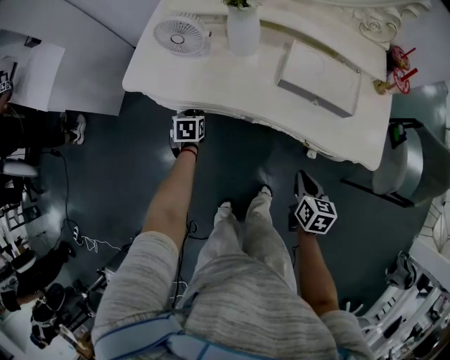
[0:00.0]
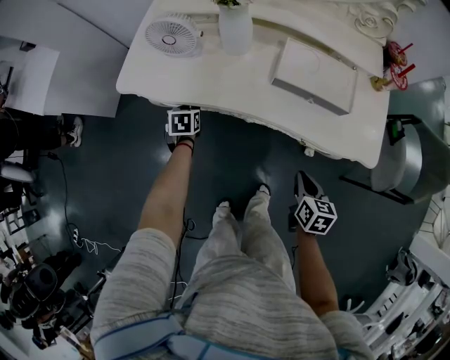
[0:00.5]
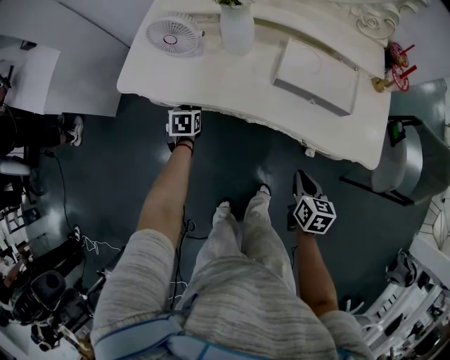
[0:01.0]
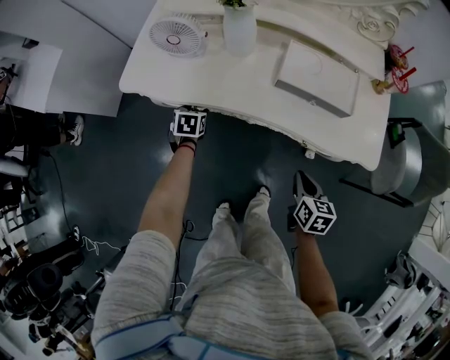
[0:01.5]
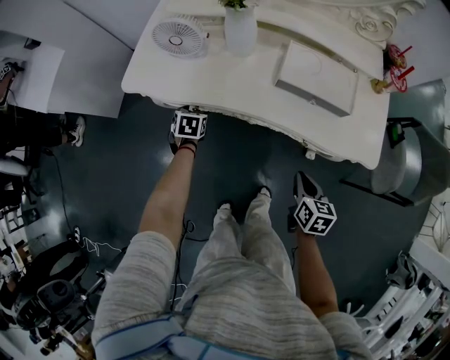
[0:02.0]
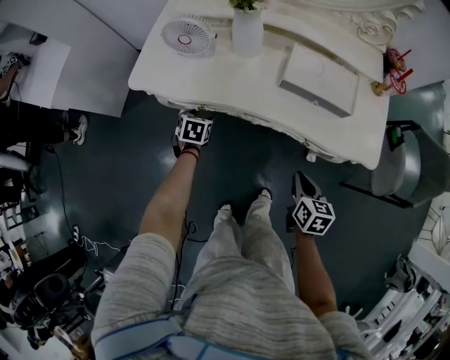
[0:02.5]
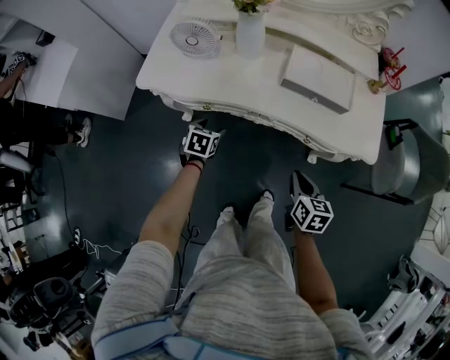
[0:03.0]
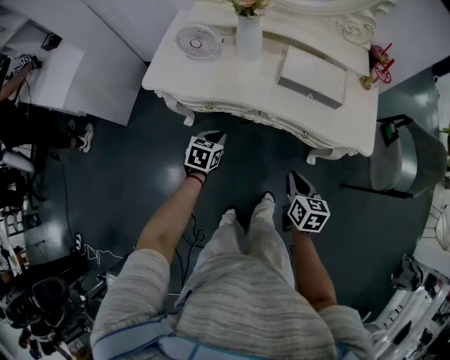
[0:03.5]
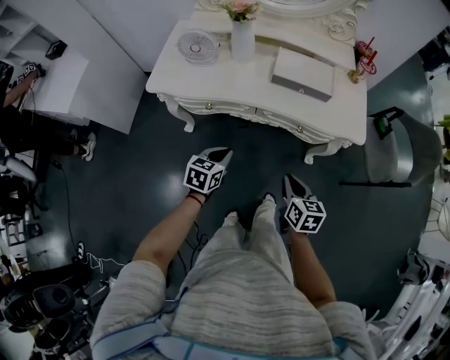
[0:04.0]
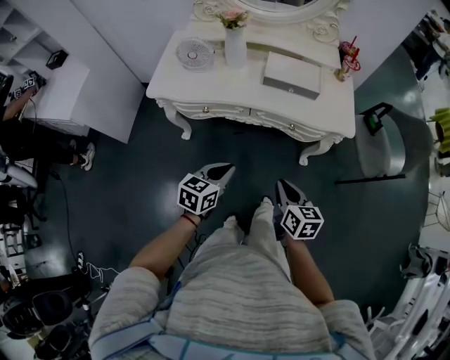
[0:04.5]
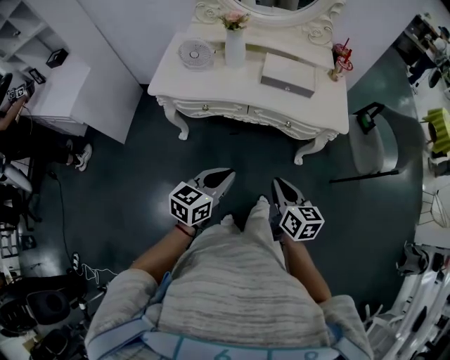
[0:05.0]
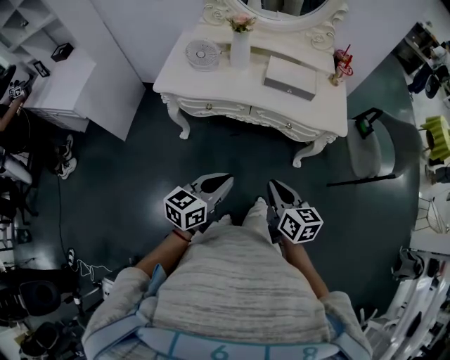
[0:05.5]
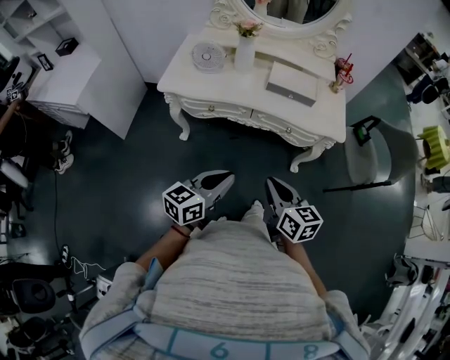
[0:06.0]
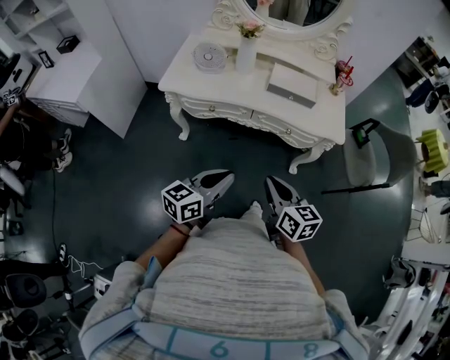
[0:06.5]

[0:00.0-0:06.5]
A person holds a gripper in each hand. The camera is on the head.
0:00.0 to 0:02.0: The left gripper opens its fingers.
0:02.0 to 0:04.5: The right gripper goes roughly 20 cm backward and upward; the left gripper is displaced backward, upward and to the right by about 40 cm, points its fingers about 30 degrees further upward, and closes.
0:04.5 to 0:06.5: The right gripper is displaced upward, backward and to the left by about 15 cm, while the left gripper is displaced upward and backward by about 15 cm, and swivels roughly 20 degrees.

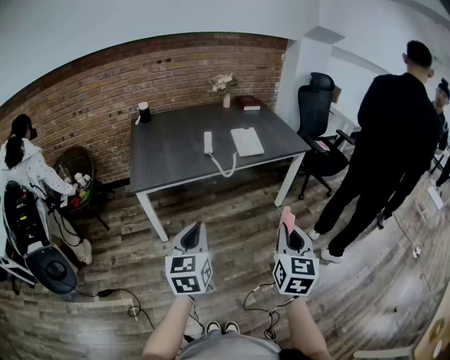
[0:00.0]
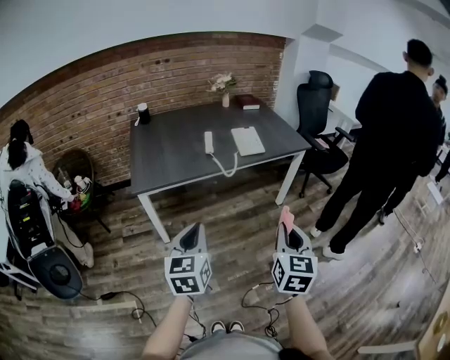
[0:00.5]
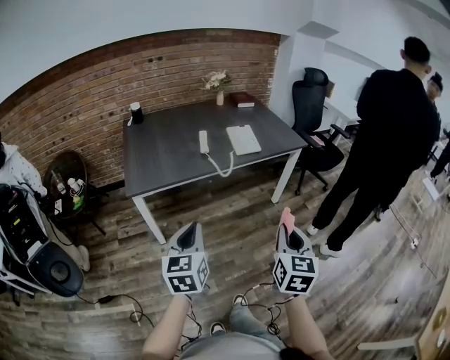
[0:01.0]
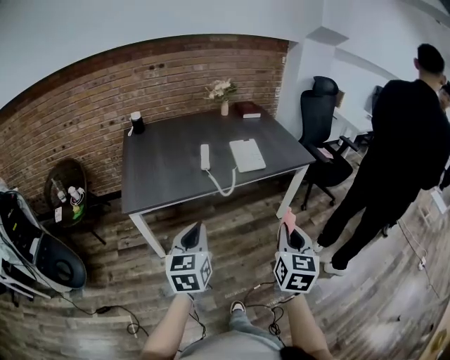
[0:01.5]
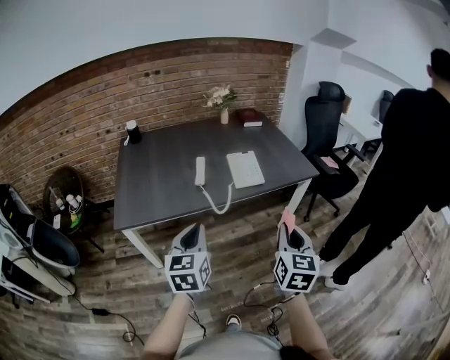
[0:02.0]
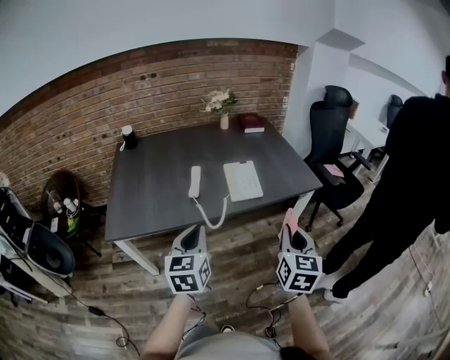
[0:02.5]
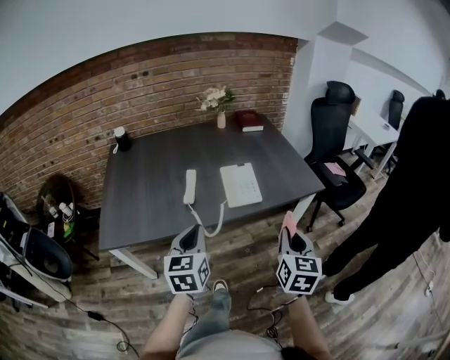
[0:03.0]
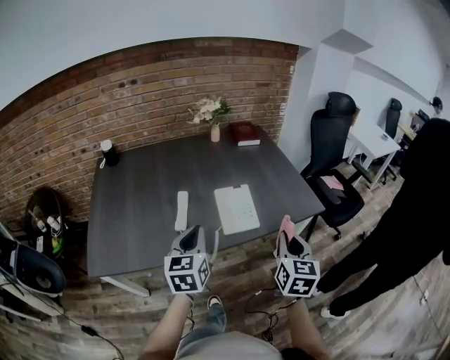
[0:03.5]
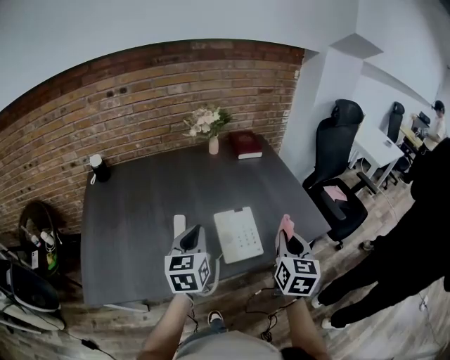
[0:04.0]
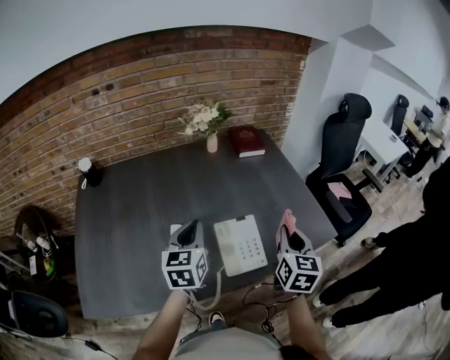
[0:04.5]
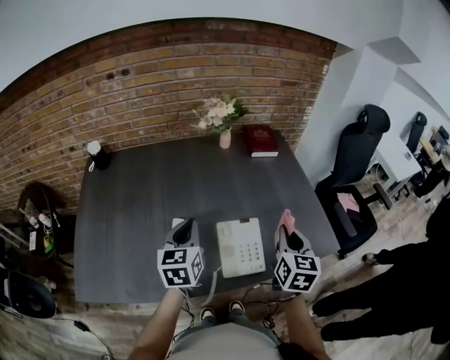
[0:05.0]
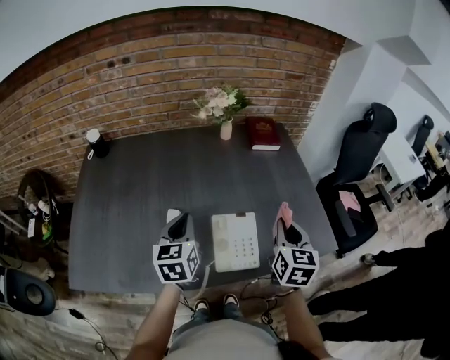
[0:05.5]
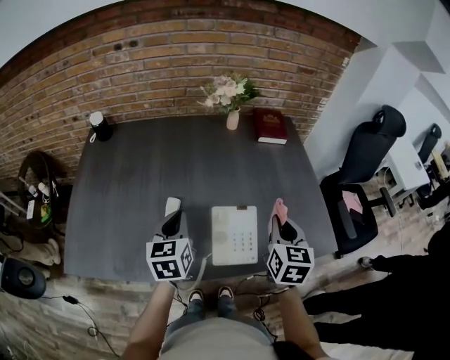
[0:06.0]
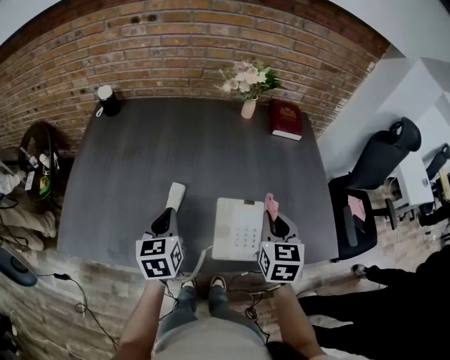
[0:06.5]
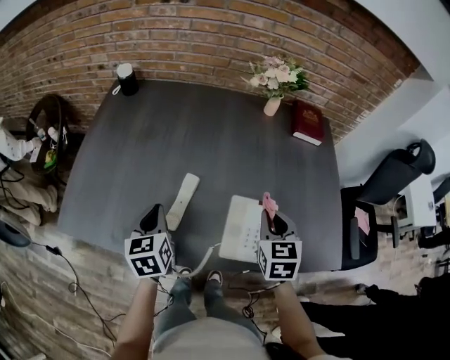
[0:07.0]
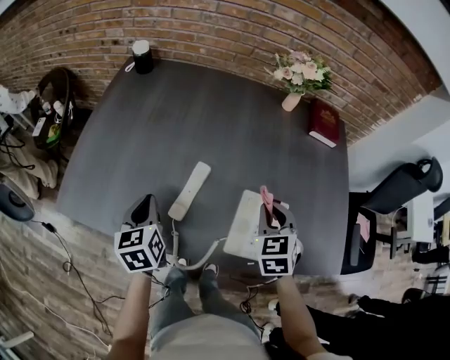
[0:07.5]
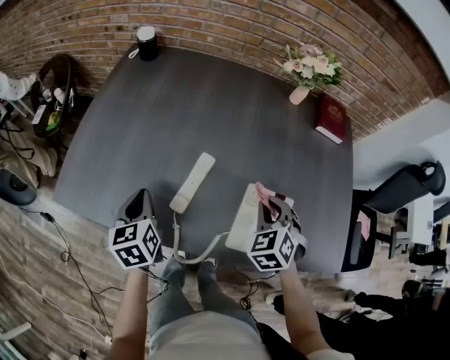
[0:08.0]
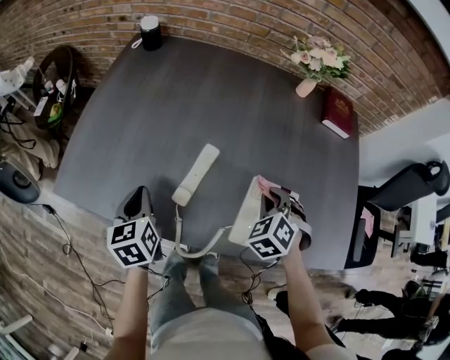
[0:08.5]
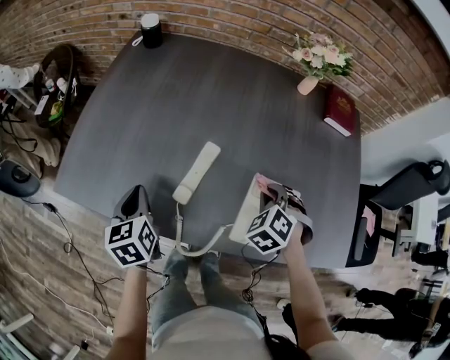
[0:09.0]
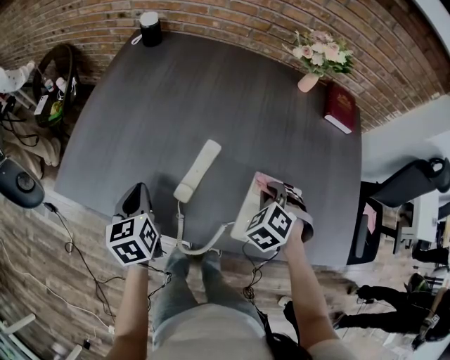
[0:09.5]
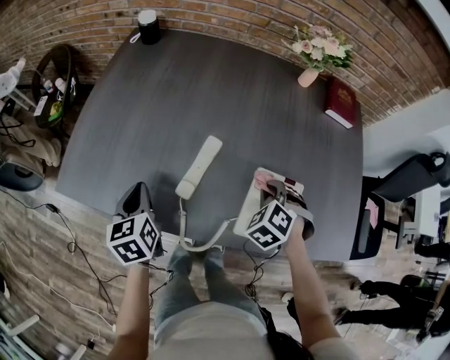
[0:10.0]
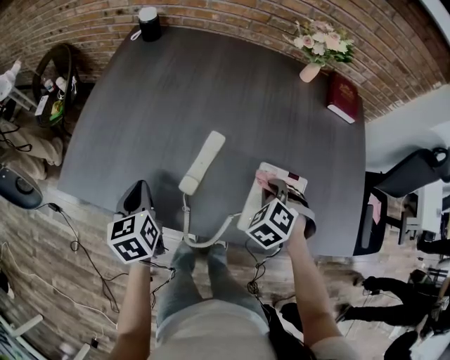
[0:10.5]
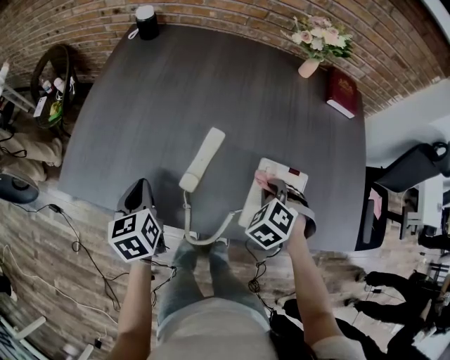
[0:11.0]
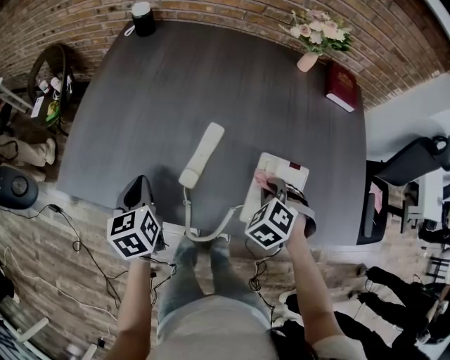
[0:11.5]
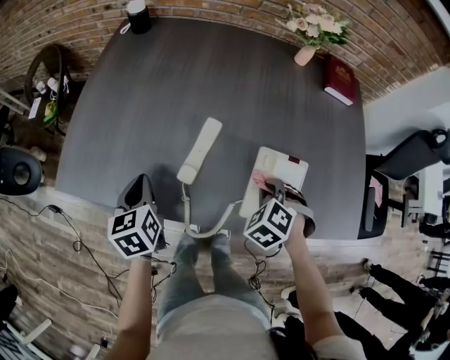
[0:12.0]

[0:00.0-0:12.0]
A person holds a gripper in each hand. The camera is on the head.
0:00.0 to 0:02.0: Both grippers move forward, roughly 25 cm.
0:02.0 to 0:04.0: The grippers both shift forward by roughly 40 cm.
0:04.0 to 0:06.0: The right gripper goes about 15 cm forward. The left gripper goes approximately 10 cm forward and downward.
0:06.0 to 0:08.0: The right gripper heads to the left, downward and forward, covering approximately 20 cm, and rotates around the line of its fingers by some 50 degrees, counterclockwise from behind. Meanwhile the left gripper heads to the left and downward, covering approximately 20 cm, and rotates roughly 30 degrees.
0:08.0 to 0:10.0: The right gripper moves downward, about 5 cm, and turns by some 20 degrees.
0:10.0 to 0:12.0: The right gripper goes some 5 cm backward.

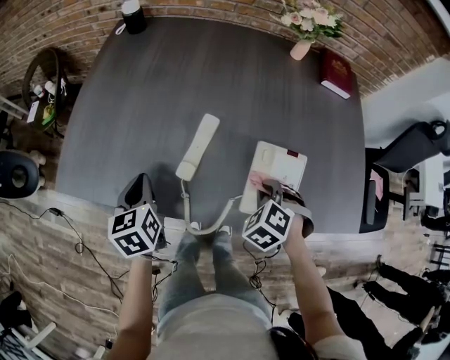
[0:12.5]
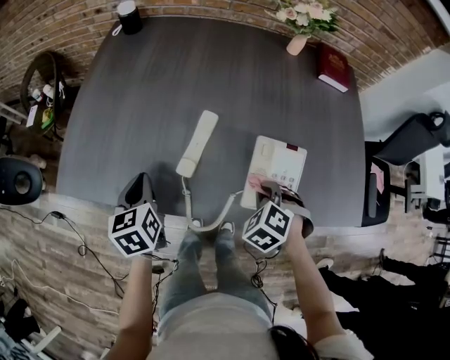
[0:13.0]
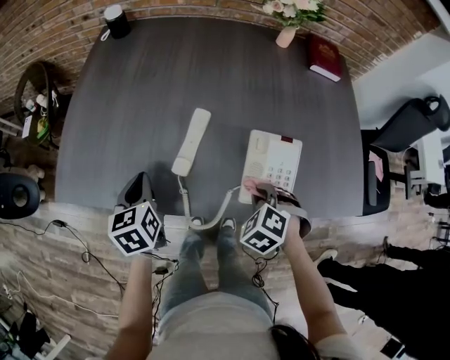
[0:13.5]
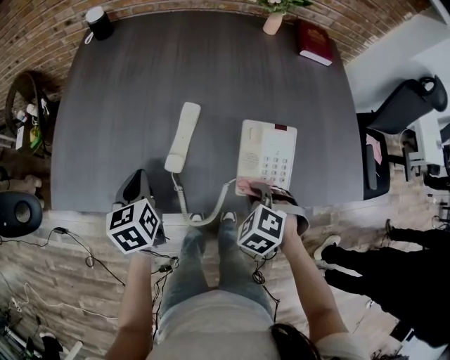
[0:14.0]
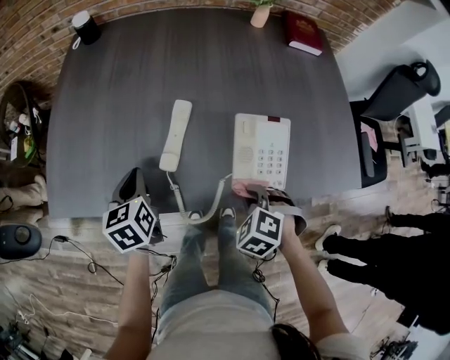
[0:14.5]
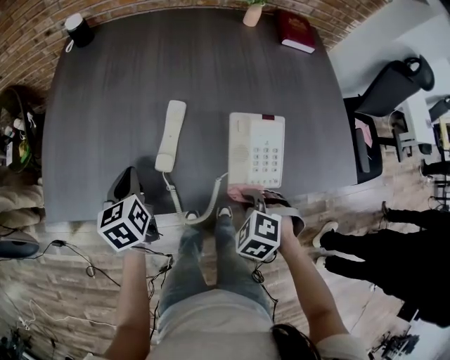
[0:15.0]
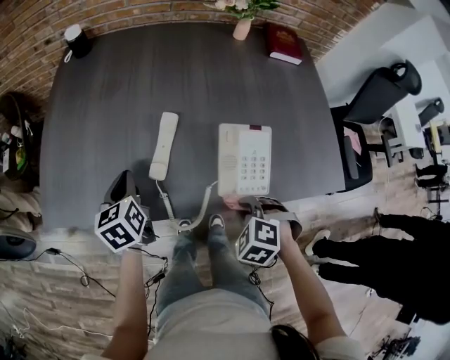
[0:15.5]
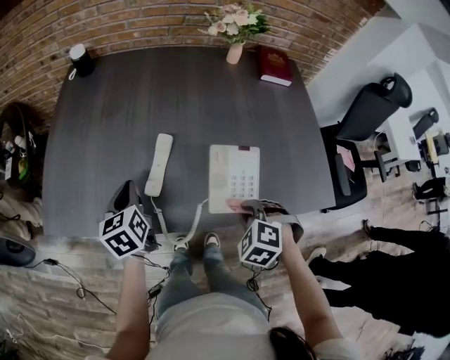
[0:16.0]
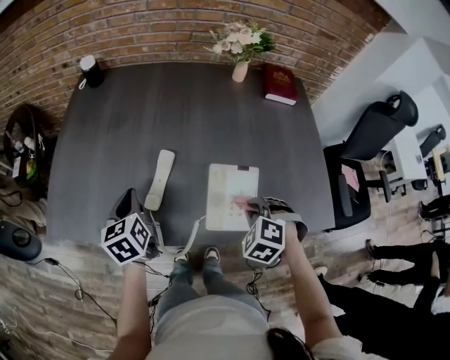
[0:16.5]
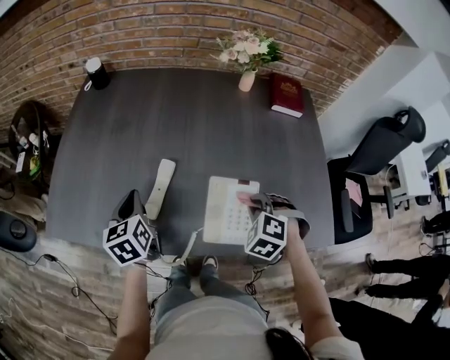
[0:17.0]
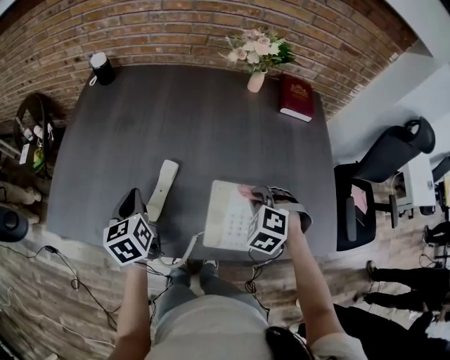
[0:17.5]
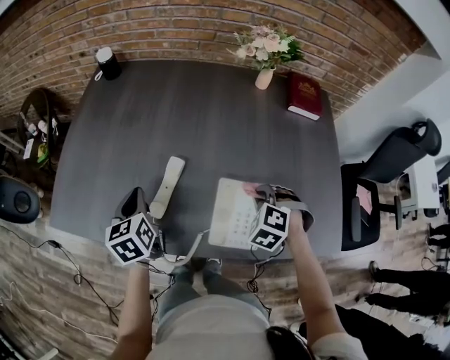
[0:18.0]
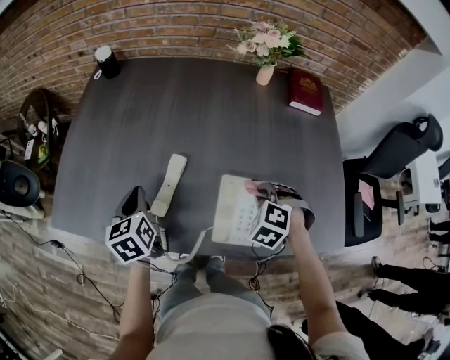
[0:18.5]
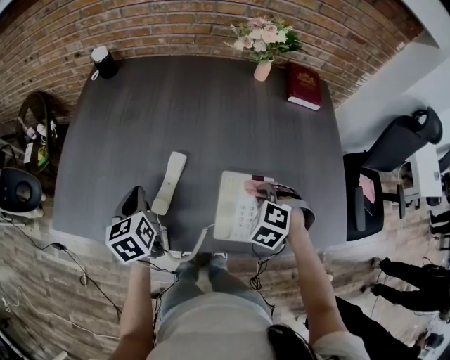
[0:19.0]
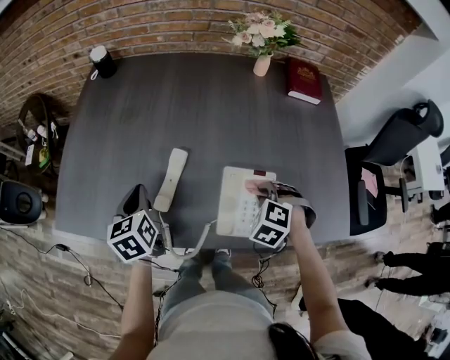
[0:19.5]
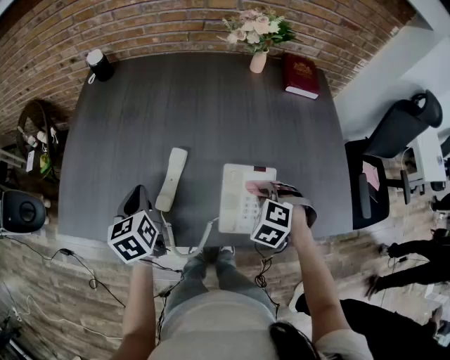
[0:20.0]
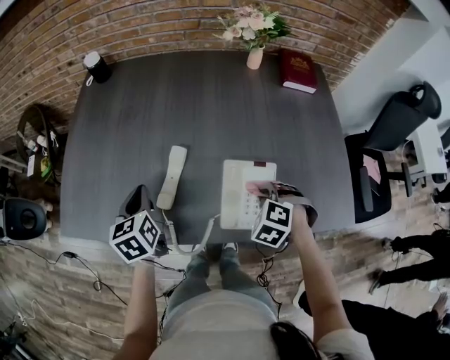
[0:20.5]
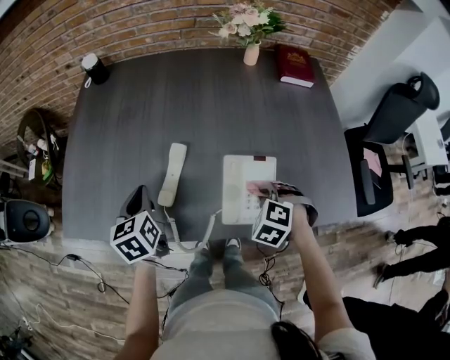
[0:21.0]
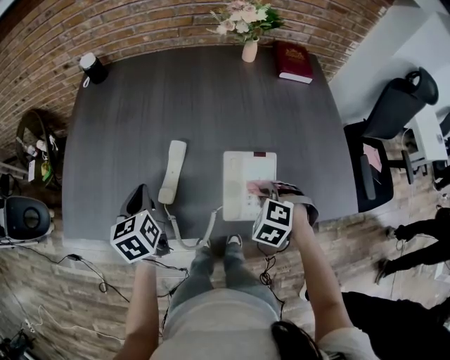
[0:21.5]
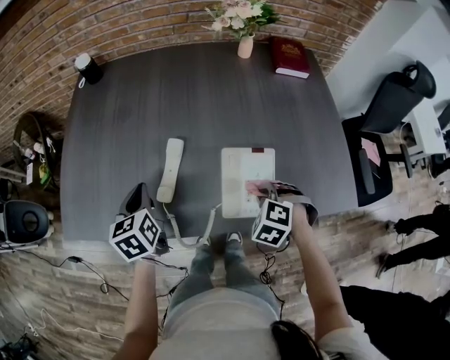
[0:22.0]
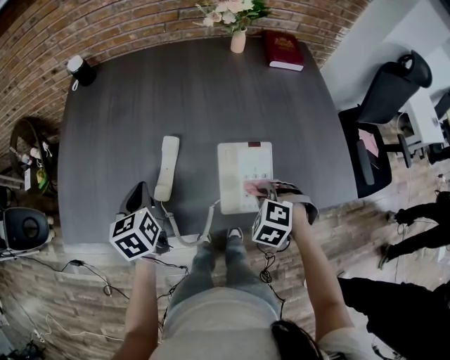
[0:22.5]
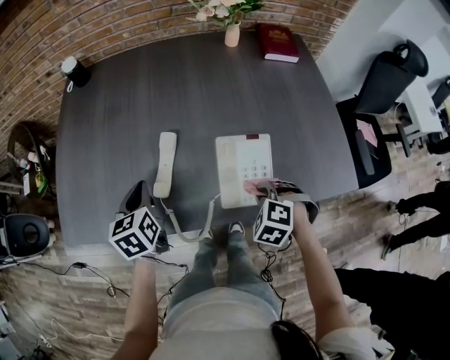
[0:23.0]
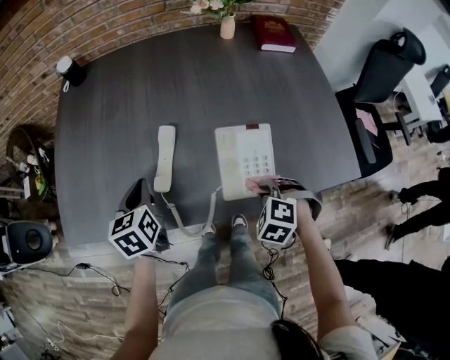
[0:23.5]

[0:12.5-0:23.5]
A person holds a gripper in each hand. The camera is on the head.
0:12.5 to 0:14.5: The right gripper is displaced backward by some 10 cm.
0:14.5 to 0:16.0: The left gripper changes place by approximately 5 cm; the right gripper goes roughly 5 cm upward.
0:16.0 to 0:18.0: The right gripper heads forward, covering some 15 cm.
0:18.0 to 0:20.0: The grippers make only small movements.
0:20.0 to 0:21.5: The grippers make only small movements.
0:21.5 to 0:23.5: The right gripper travels backward by some 5 cm.
